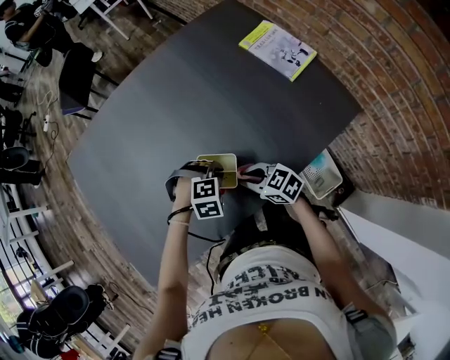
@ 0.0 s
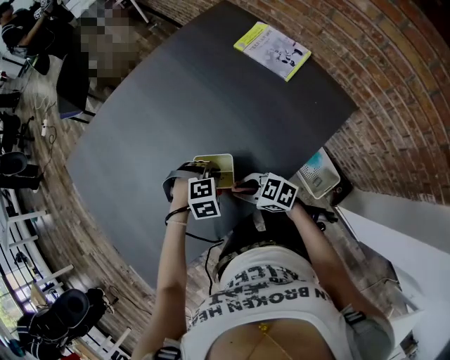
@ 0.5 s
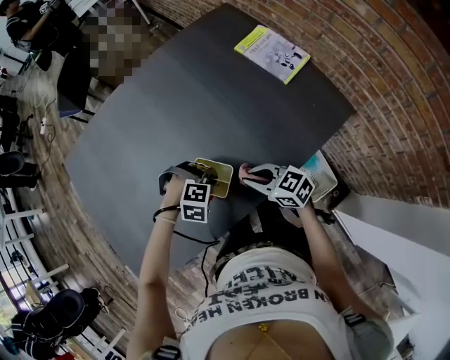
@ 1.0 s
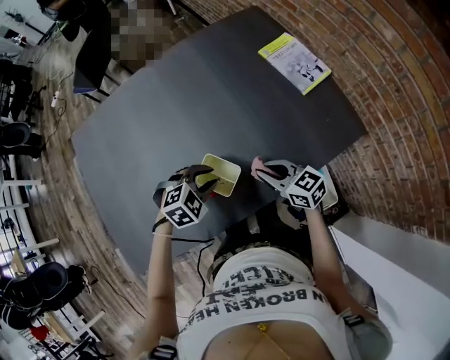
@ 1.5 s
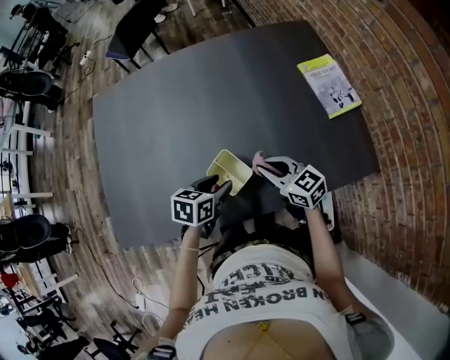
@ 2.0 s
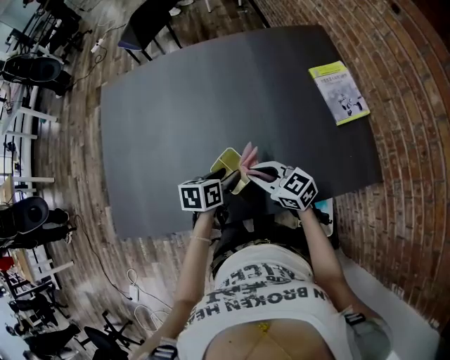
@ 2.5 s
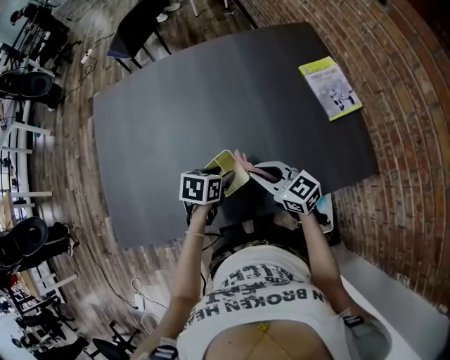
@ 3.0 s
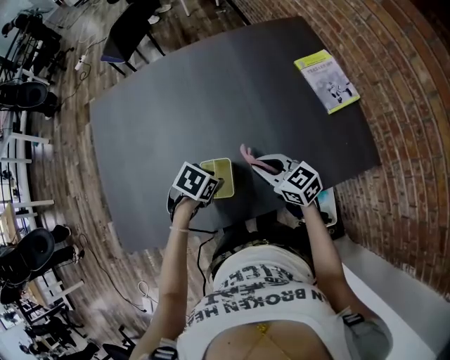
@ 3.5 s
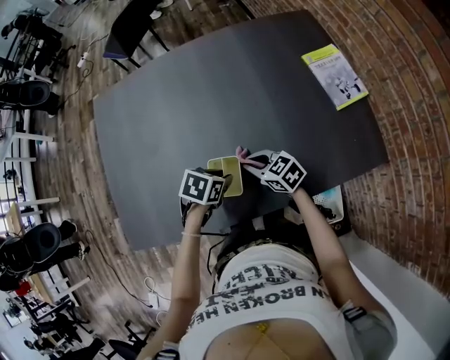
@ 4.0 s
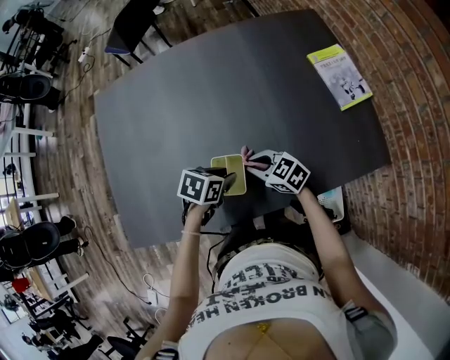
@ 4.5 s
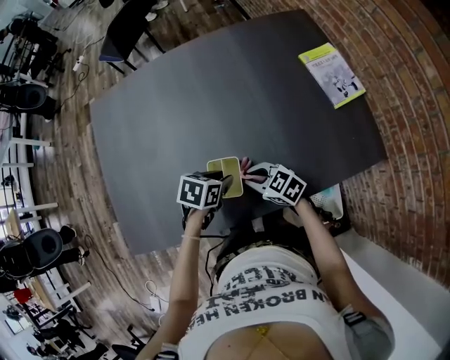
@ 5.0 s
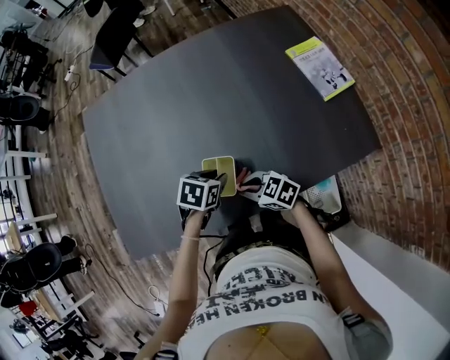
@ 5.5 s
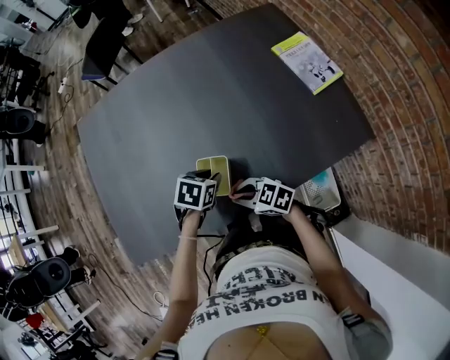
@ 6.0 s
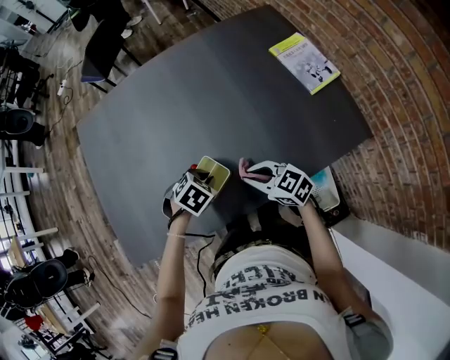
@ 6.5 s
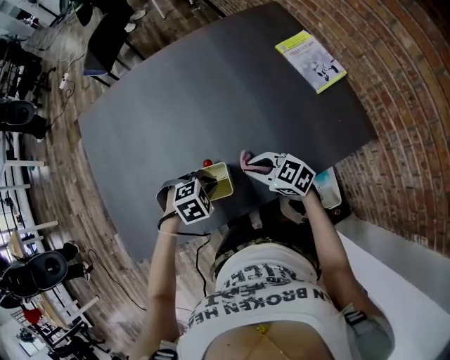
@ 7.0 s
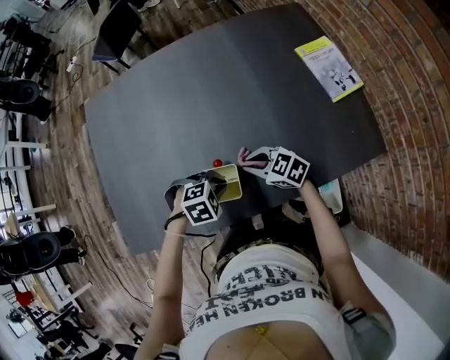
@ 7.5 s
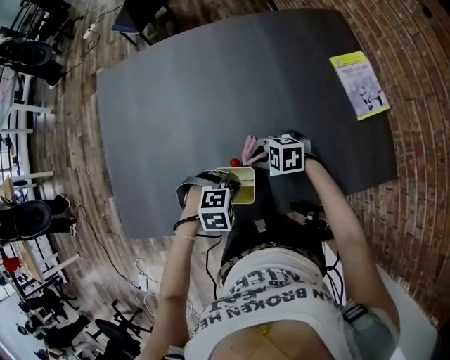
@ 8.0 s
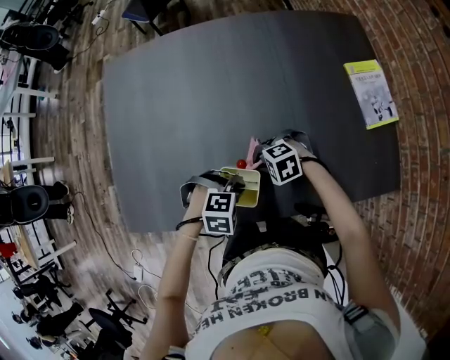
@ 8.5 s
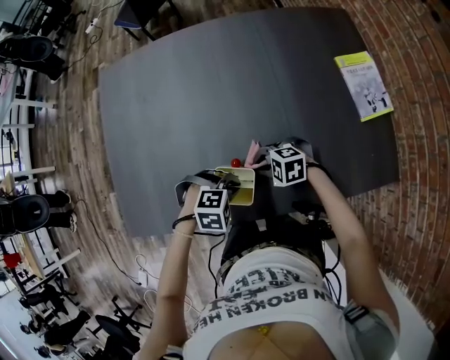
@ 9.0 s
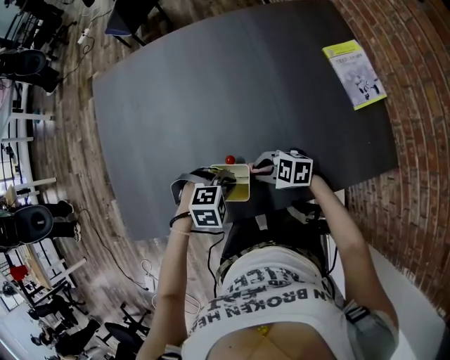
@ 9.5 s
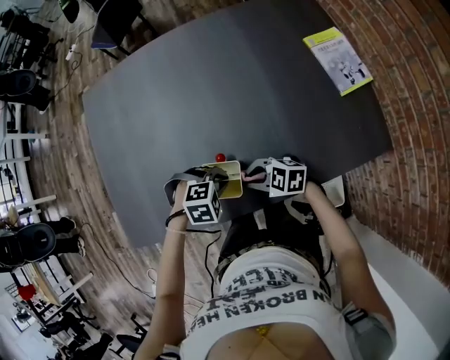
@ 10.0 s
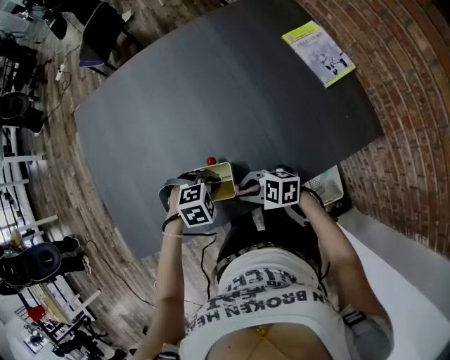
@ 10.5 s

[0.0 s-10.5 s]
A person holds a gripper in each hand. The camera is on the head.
0.0 to 2.0 s: The right gripper shifts roughly 5 cm upward; the left gripper ends up about 5 cm from where it was, rotates around the line of its fingers by about 100 degrees, counterclockwise from behind, and opens up.
2.0 to 4.0 s: The left gripper swivels roughly 20 degrees, while the right gripper shifts by some 10 cm.
4.0 to 6.5 s: The right gripper ends up about 10 cm from where it was; the left gripper changes its angle by approximately 30 degrees.
6.5 to 8.5 s: The left gripper rotates about 30 degrees; the right gripper is displaced downward by about 10 cm, and angles its fingers downward, by approximately 30 degrees.
8.5 to 10.5 s: The right gripper moves roughly 10 cm, and changes its angle by roughly 40 degrees.

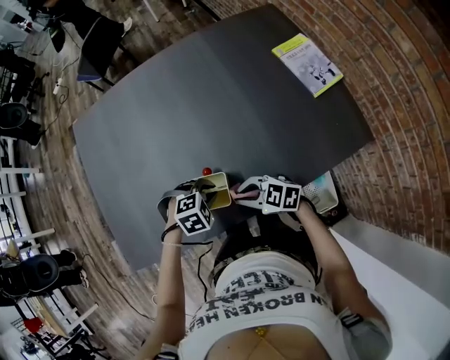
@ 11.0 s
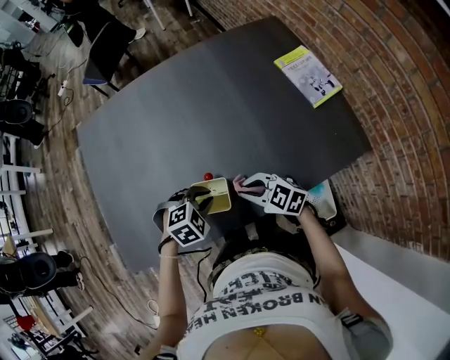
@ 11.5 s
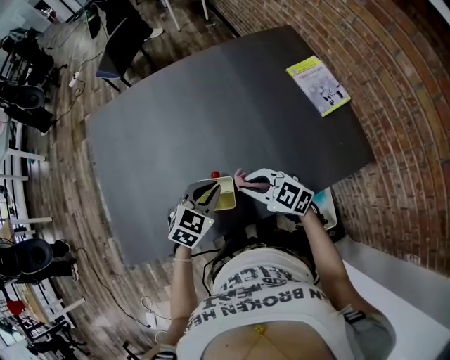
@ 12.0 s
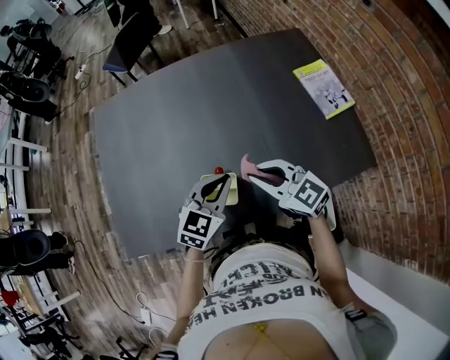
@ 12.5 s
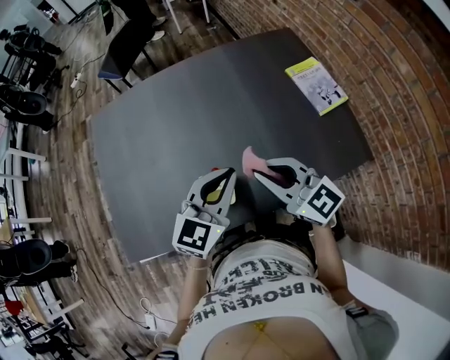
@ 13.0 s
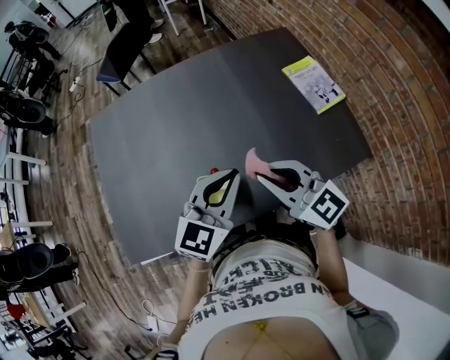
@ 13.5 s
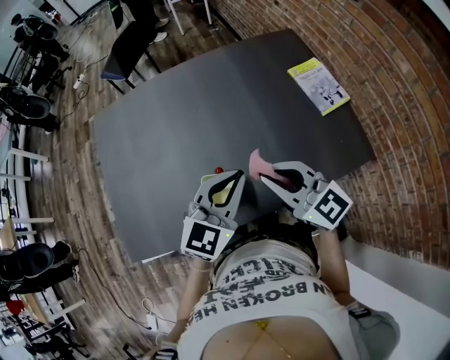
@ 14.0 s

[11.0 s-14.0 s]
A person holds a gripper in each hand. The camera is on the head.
11.0 to 12.5 s: Both grippers travel together upward, about 15 cm. The right gripper swivels about 30 degrees; the left gripper tilts its fingers roughly 40 degrees upward.
12.5 to 14.0 s: The two grippers go approximately 10 cm upward.

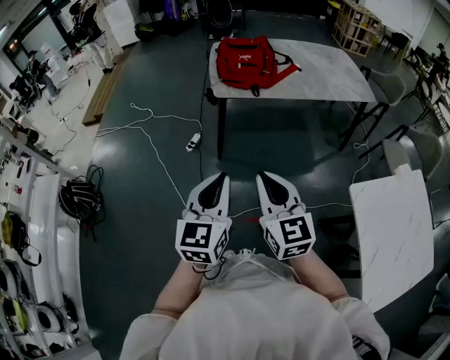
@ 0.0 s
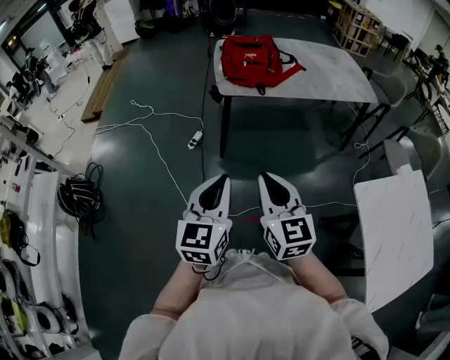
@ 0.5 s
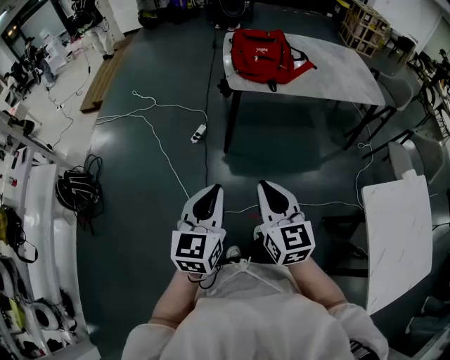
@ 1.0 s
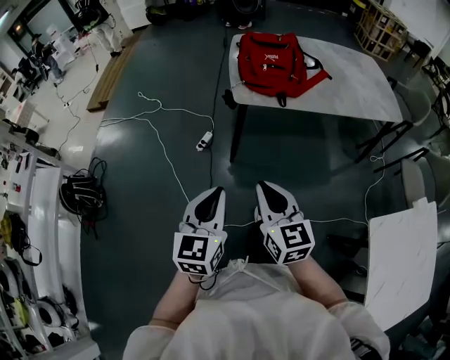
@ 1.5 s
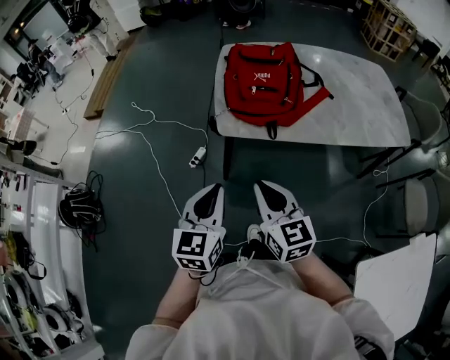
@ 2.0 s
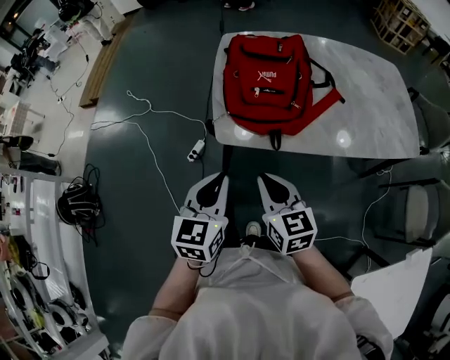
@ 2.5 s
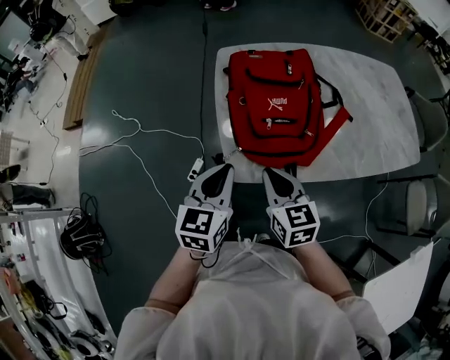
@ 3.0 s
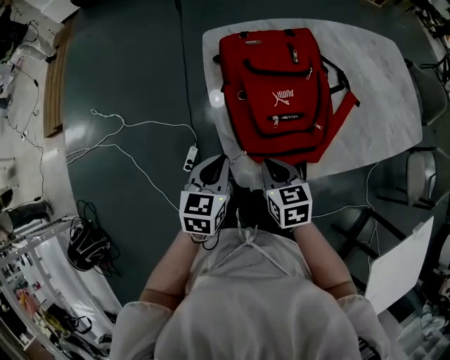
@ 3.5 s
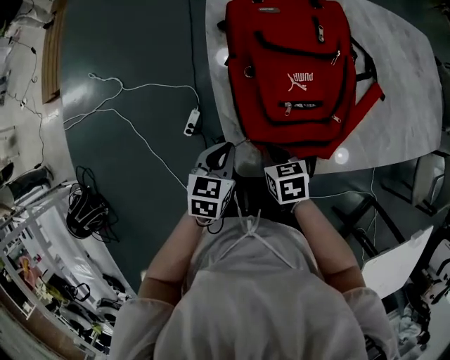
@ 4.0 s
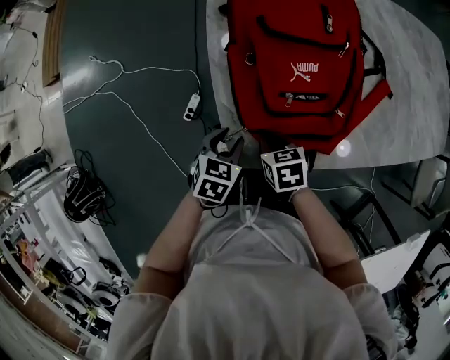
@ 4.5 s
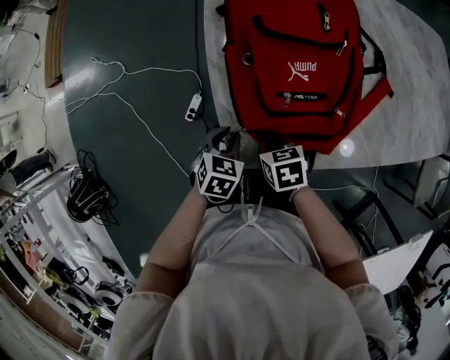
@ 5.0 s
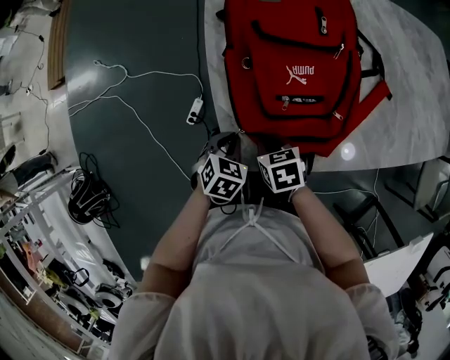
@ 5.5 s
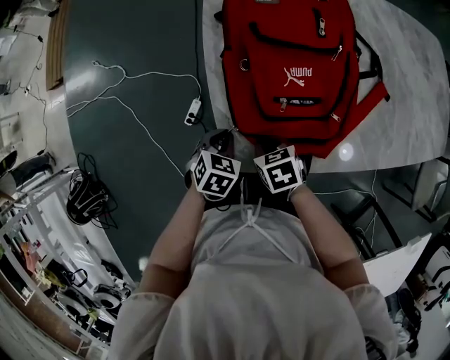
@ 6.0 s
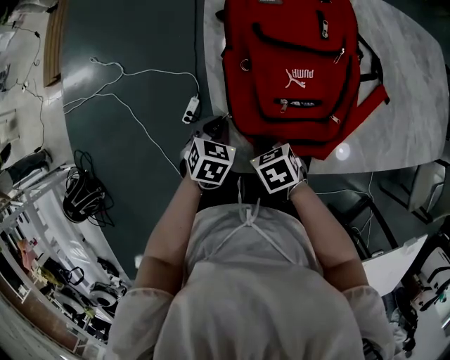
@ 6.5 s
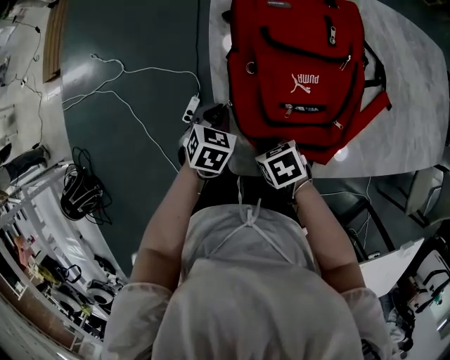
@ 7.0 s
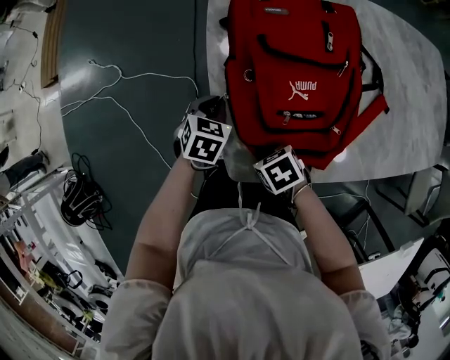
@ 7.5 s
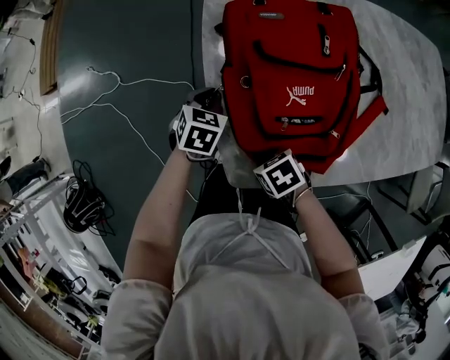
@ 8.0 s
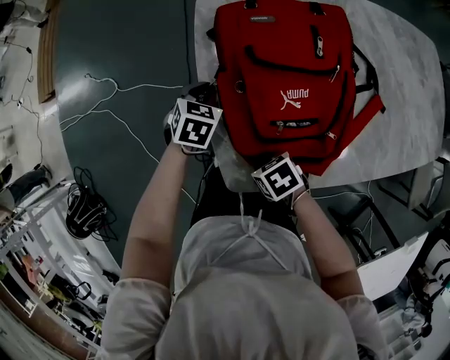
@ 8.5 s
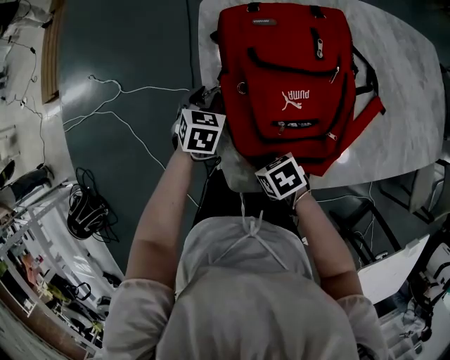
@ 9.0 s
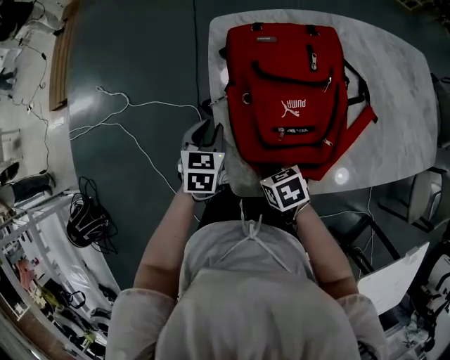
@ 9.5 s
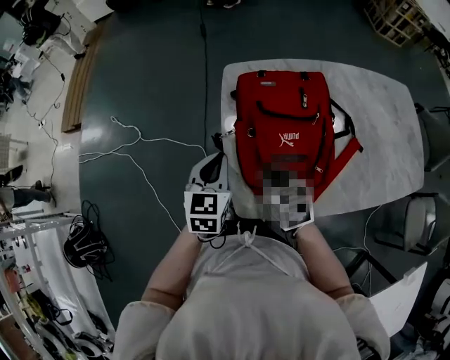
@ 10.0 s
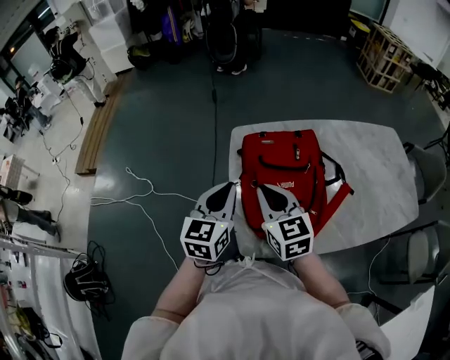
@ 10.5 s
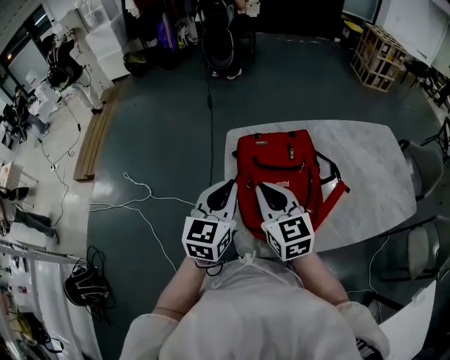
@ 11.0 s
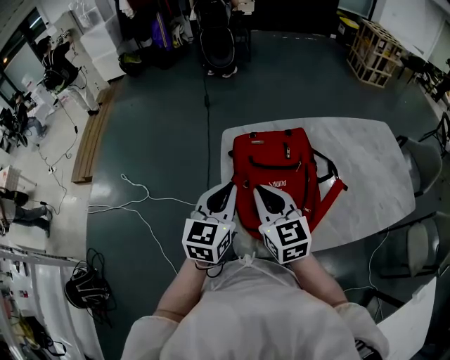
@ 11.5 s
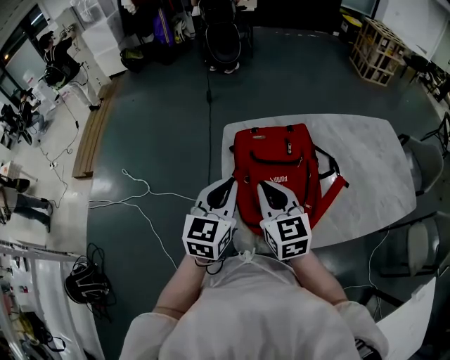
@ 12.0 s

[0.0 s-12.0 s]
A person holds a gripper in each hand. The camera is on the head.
0.0 to 2.0 s: The grippers both shift forward by some 30 cm.
2.0 to 4.0 s: The two grippers go roughly 40 cm forward and downward. The left gripper rotates about 30 degrees. The right gripper points its fingers roughly 50 degrees further downward.
4.0 to 6.0 s: The left gripper heads downward, covering roughly 5 cm, turns by about 20 degrees, and opens and closes again.
6.0 to 8.0 s: The left gripper shifts some 15 cm forward.
8.0 to 10.0 s: The left gripper goes roughly 20 cm upward, changes its angle by some 30 degrees, and opens, then closes again. Meanwhile the right gripper shifts roughly 20 cm upward and forward, and changes its angle by about 40 degrees.
10.0 to 12.0 s: The two grippers go roughly 15 cm upward. The right gripper turns by approximately 30 degrees.

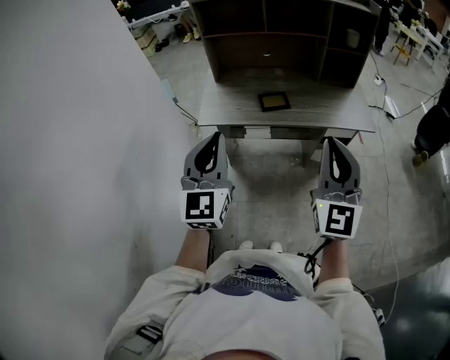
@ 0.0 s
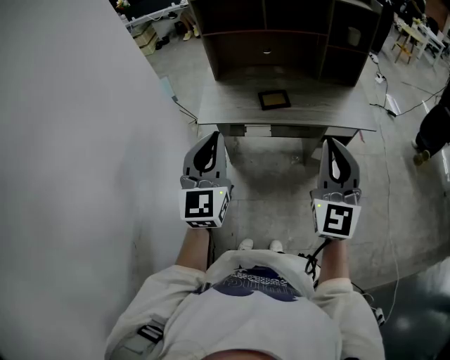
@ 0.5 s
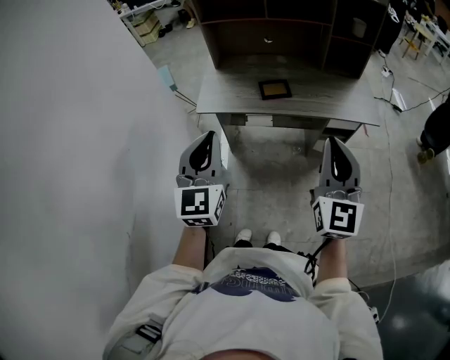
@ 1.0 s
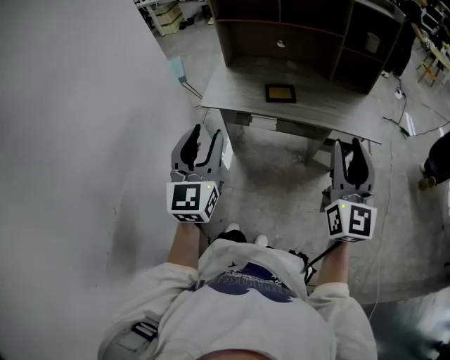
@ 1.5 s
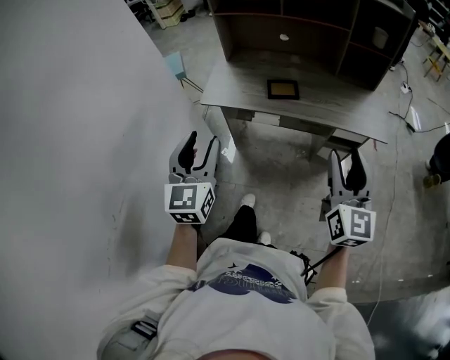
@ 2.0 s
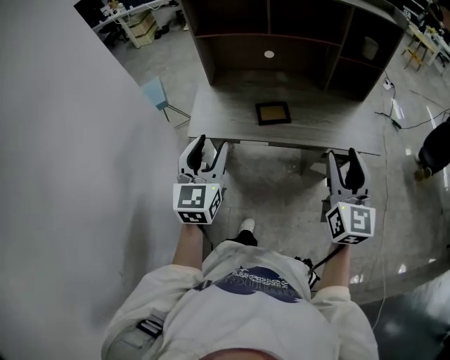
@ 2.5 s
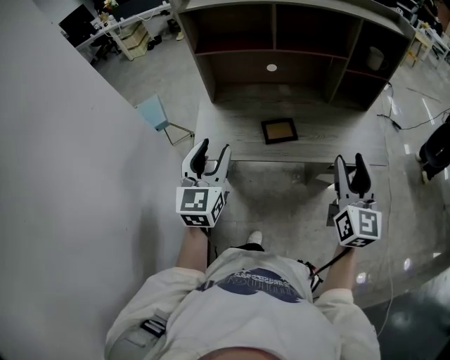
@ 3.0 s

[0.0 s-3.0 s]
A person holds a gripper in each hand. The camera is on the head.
0.0 to 1.5 s: The right gripper shifts about 10 cm to the right, and opens up; the left gripper opens.
1.5 to 3.0 s: The two grippers go about 25 cm forward.
